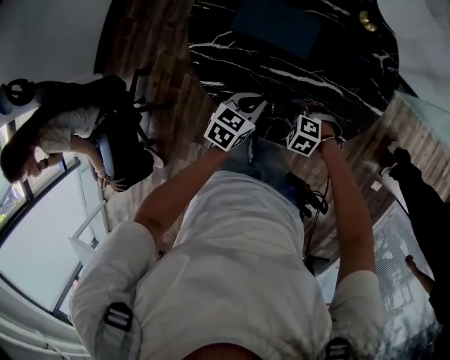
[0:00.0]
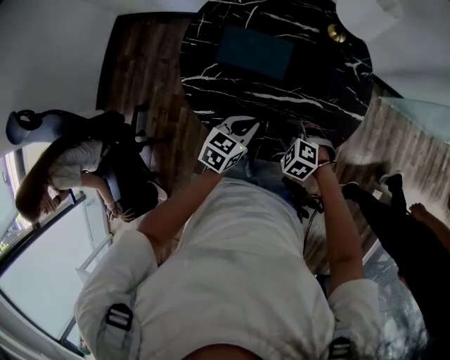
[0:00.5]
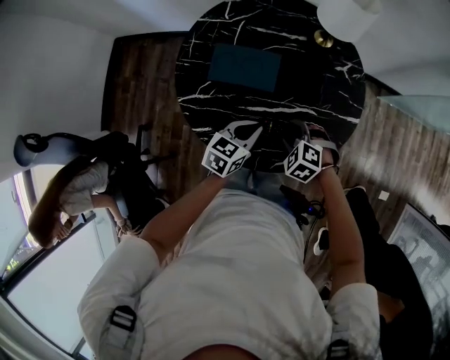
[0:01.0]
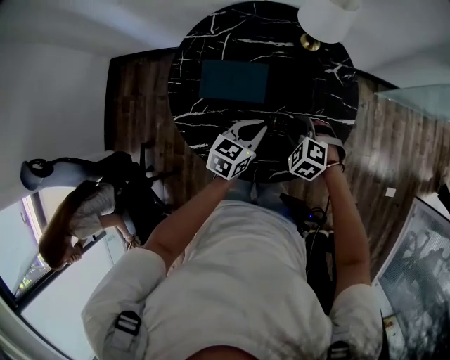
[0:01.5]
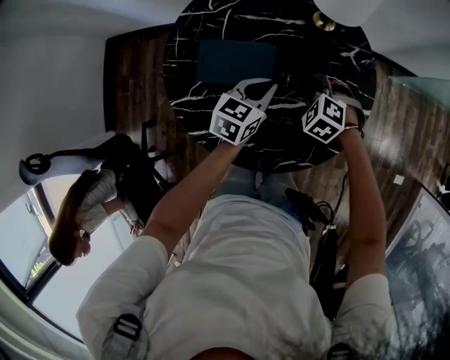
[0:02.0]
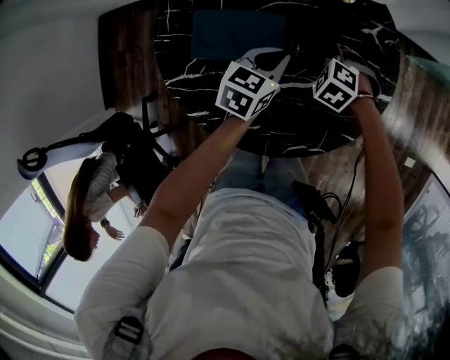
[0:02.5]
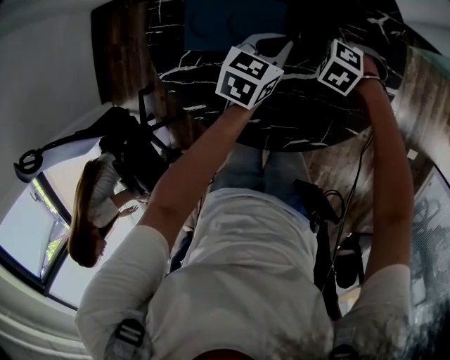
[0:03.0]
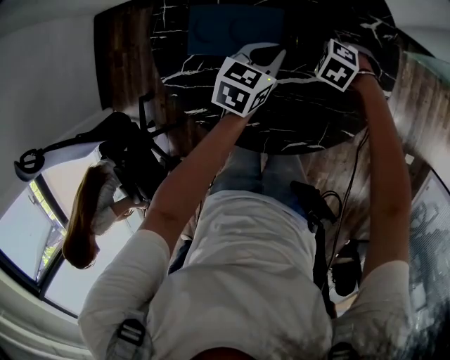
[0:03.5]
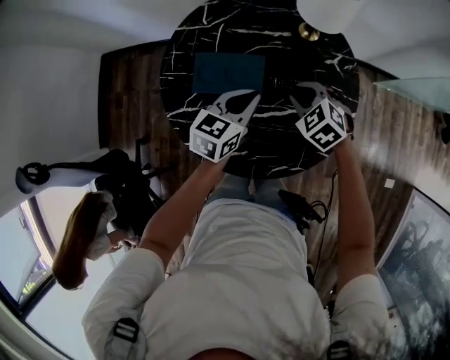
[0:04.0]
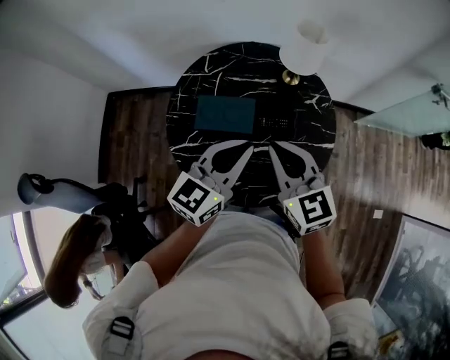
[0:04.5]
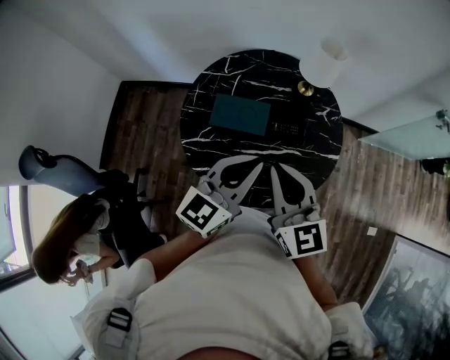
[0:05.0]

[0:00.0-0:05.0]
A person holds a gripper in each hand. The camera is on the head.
0:00.0 to 0:02.5: The right gripper goes upward and returns, some 10 cm each way, and swivels some 20 degrees. The left gripper reaches some 10 cm upward, then returns.
0:02.5 to 0:05.0: Both grippers move upward, roughly 40 cm. The left gripper angles its fingers upward, by about 30 degrees. Meanwhile the right gripper points its fingers about 60 degrees further upward, and closes its fingers.

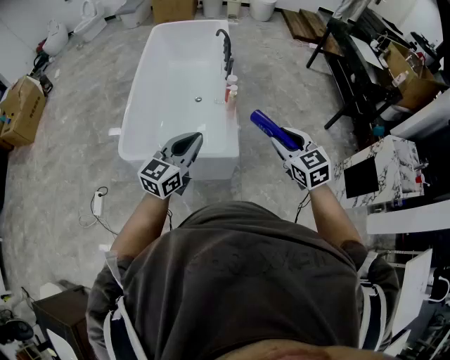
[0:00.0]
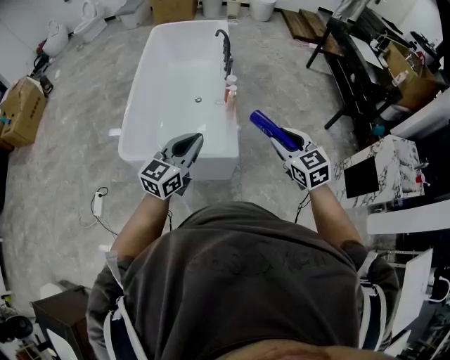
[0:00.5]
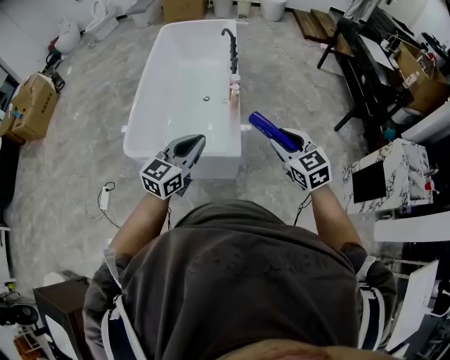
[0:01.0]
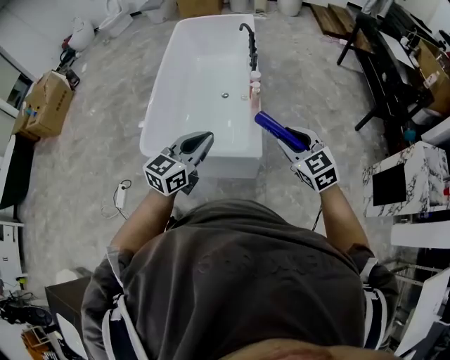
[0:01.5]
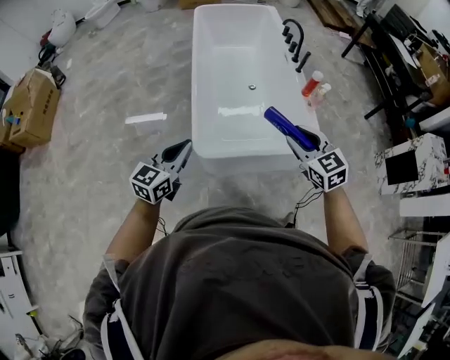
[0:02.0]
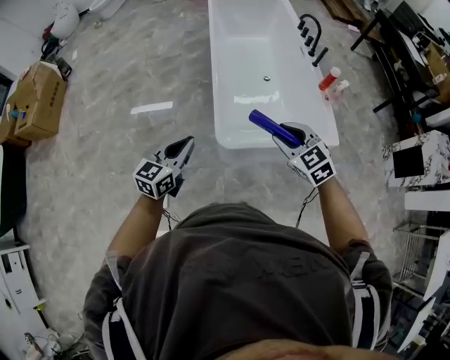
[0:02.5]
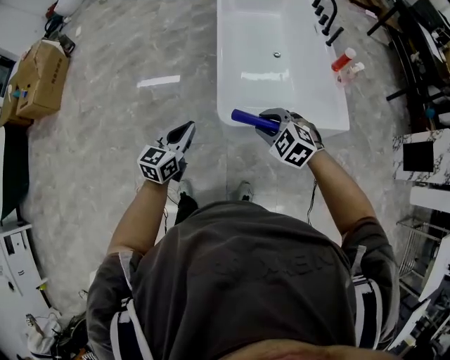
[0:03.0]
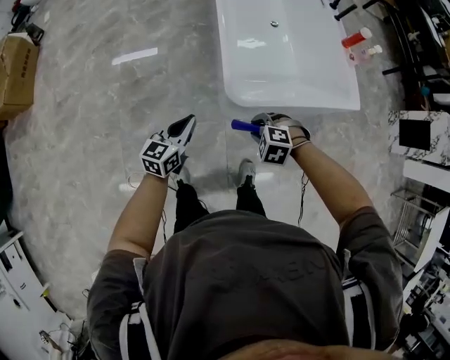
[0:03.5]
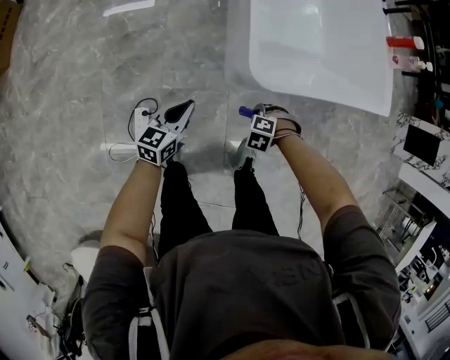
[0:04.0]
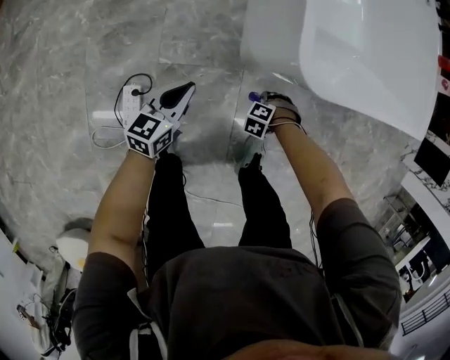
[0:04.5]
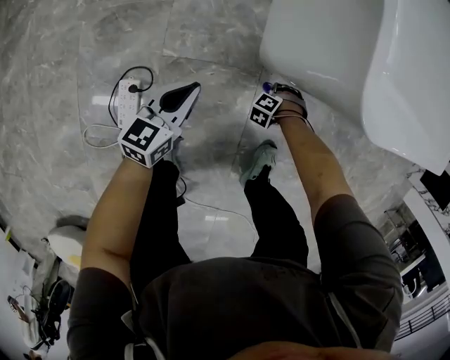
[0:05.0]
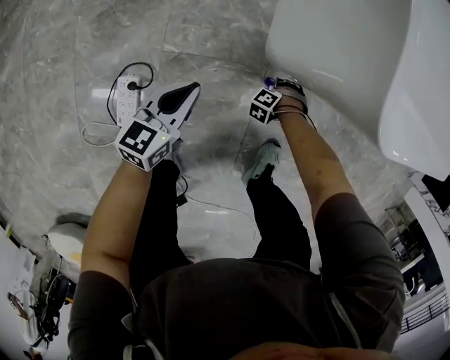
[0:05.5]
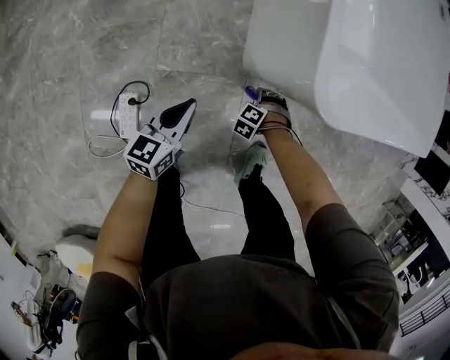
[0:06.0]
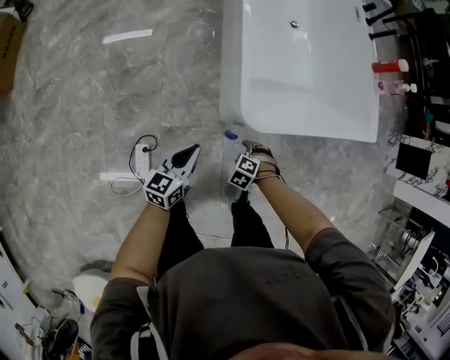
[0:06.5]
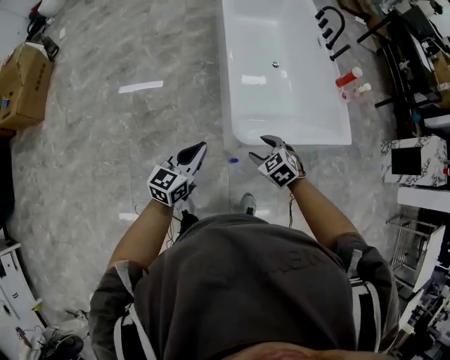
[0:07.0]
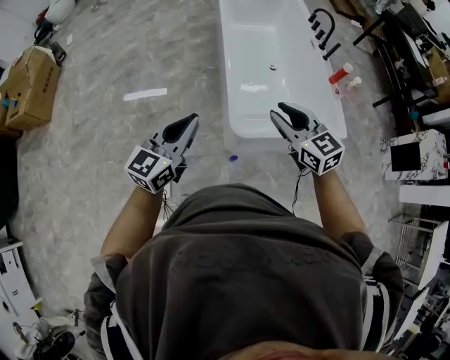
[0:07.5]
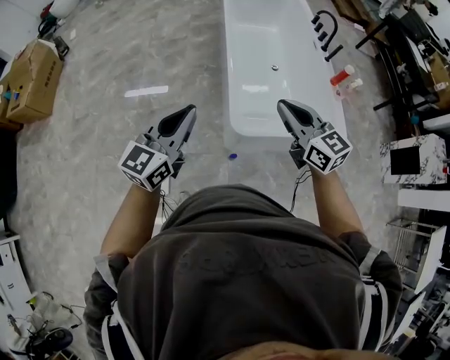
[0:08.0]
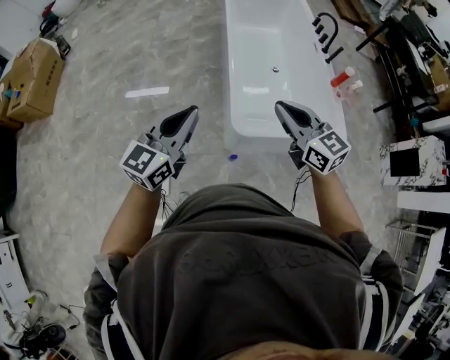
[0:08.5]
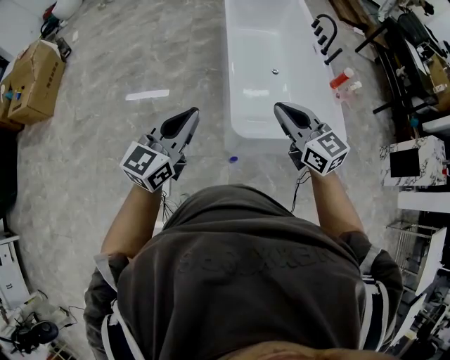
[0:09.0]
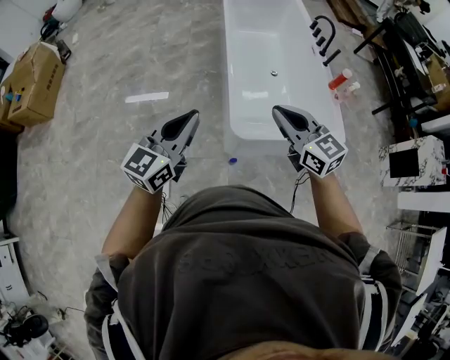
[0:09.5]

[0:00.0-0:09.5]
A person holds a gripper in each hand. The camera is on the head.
0:00.0 to 0:02.0: The two grippers travel together, to the left, roughly 50 cm.
0:02.0 to 0:04.0: The two grippers go some 50 cm downward. The left gripper changes its angle by approximately 20 degrees; the right gripper angles its fingers downward, by about 70 degrees.
0:04.0 to 0:05.5: The left gripper moves downward, approximately 30 cm. The right gripper is displaced downward by about 40 cm, and changes its angle by roughly 20 degrees.
0:05.5 to 0:07.5: The two grippers go some 90 cm upward. The right gripper points its fingers about 60 degrees further upward, and opens, then closes once more. The left gripper turns by approximately 30 degrees.
0:07.5 to 0:09.5: The right gripper closes.

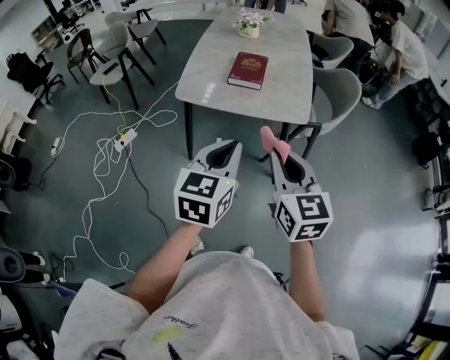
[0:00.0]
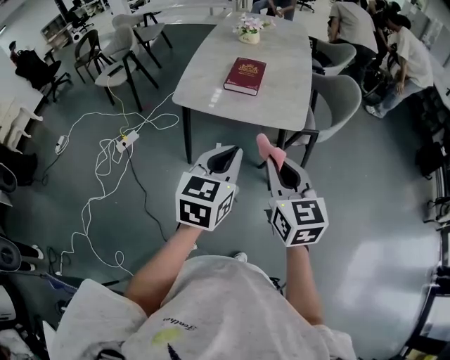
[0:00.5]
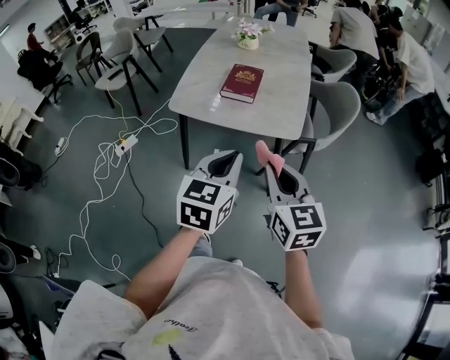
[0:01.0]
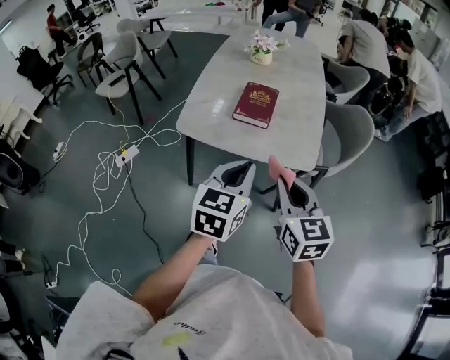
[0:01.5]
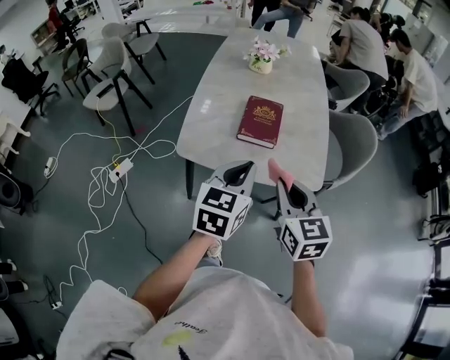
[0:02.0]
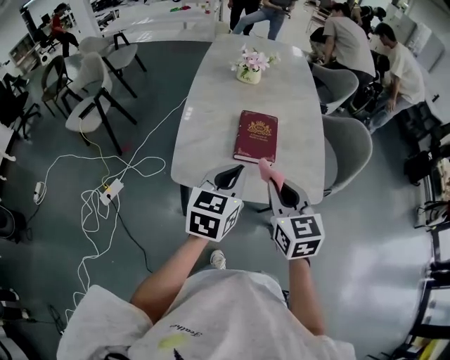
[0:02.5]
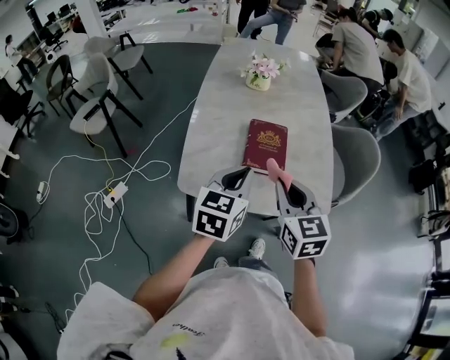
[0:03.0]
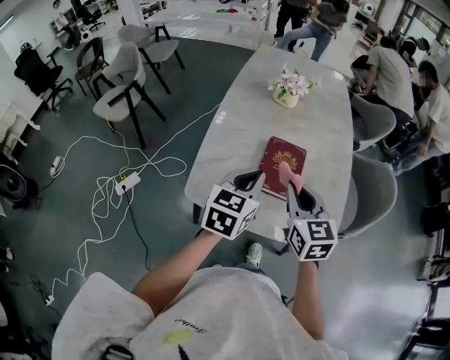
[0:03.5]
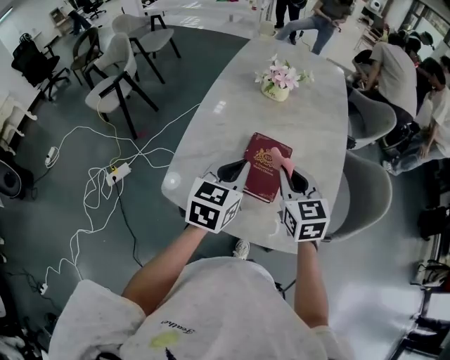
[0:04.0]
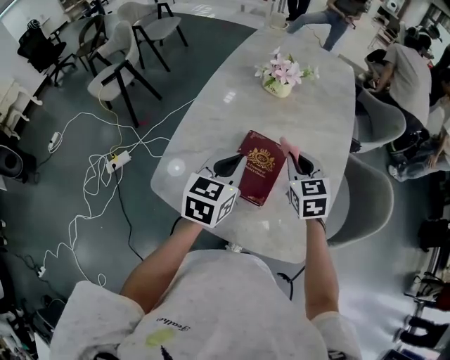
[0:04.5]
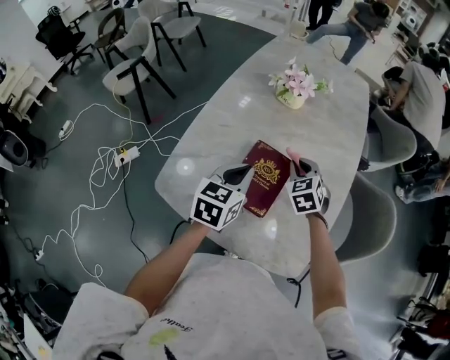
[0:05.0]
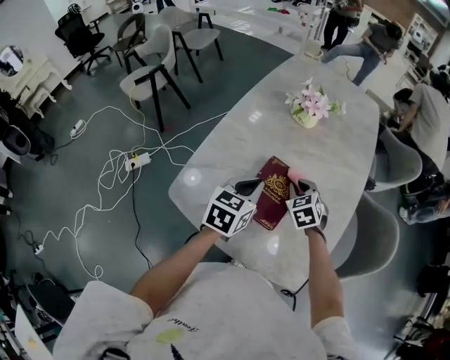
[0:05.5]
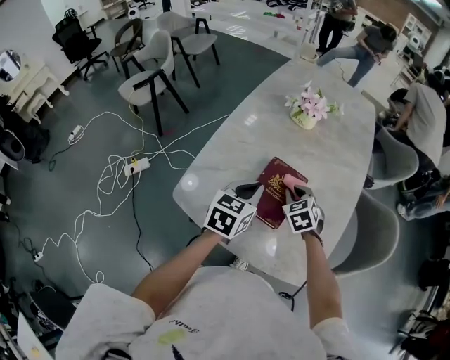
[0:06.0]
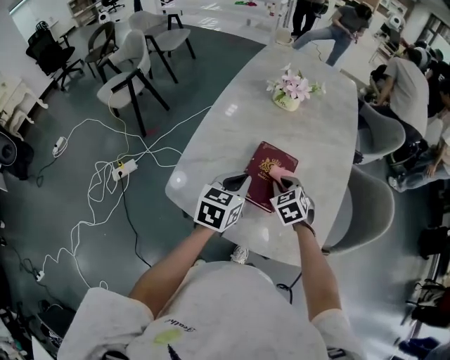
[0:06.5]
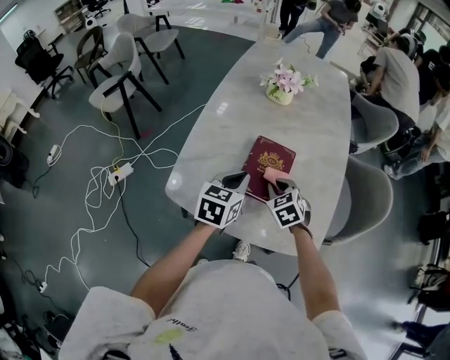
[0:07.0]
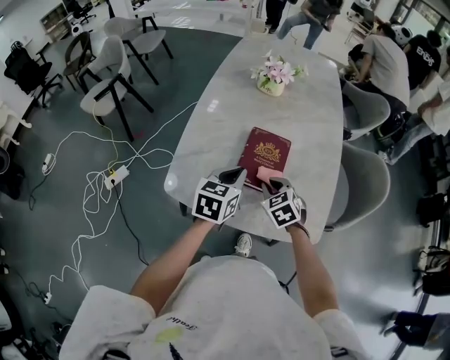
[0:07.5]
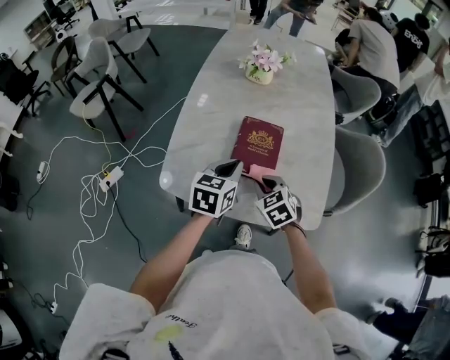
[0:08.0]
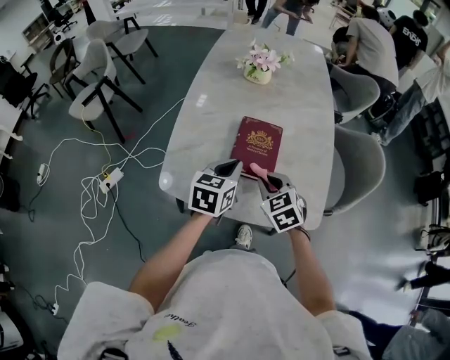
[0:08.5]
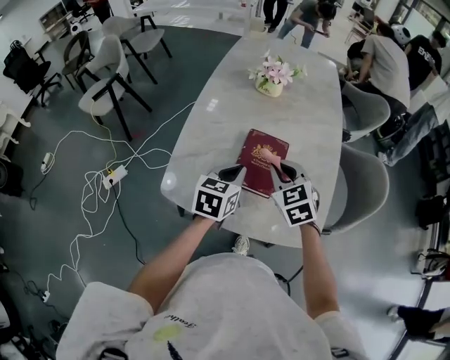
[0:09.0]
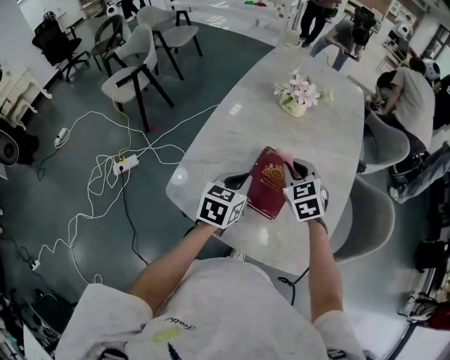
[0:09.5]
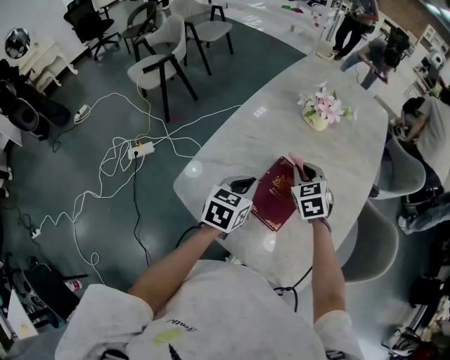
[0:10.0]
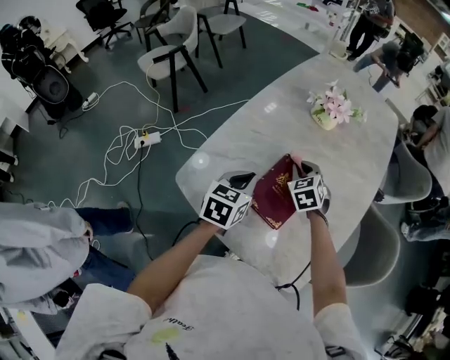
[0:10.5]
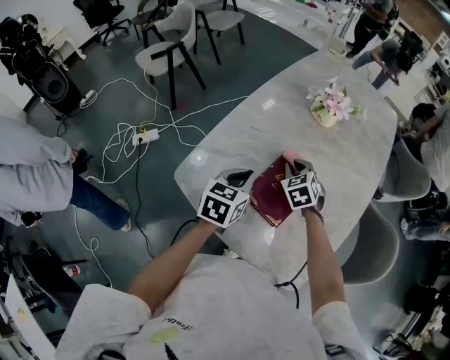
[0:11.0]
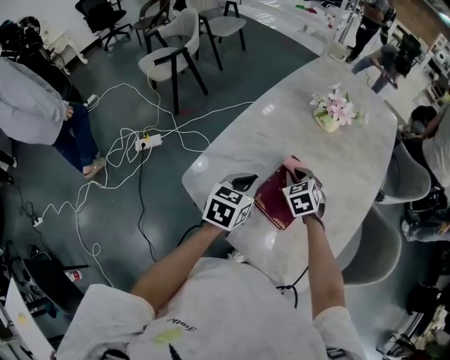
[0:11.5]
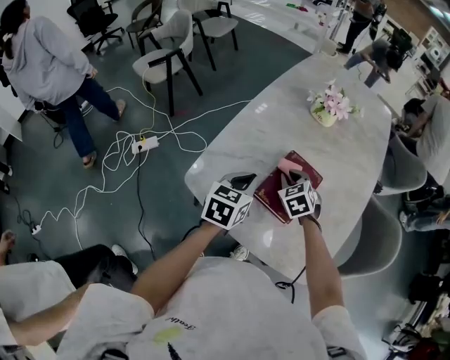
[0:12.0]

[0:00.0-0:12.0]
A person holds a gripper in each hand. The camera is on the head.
0:00.0 to 0:02.0: The grippers both shift forward by approximately 25 cm.
0:02.0 to 0:04.0: The grippers both shift forward by about 25 cm.
0:04.0 to 0:06.0: The right gripper heads downward and forward, covering roughly 15 cm, and rotates approximately 30 degrees; the left gripper shifts about 5 cm downward.
0:06.0 to 0:08.0: The left gripper heads backward, covering about 5 cm. The right gripper heads backward, covering roughly 15 cm.
0:08.0 to 0:10.0: The left gripper travels forward by about 5 cm; the right gripper is displaced forward by some 20 cm.
0:10.0 to 0:12.0: The right gripper heads downward, to the left and backward, covering roughly 10 cm.
